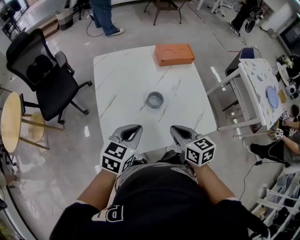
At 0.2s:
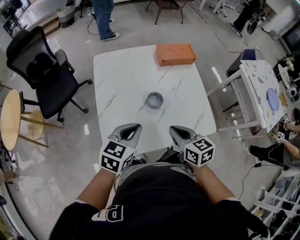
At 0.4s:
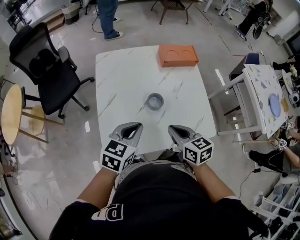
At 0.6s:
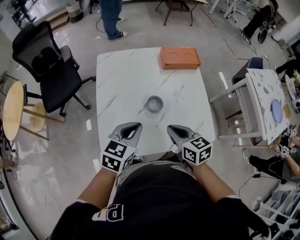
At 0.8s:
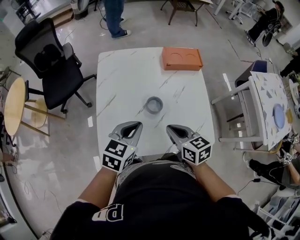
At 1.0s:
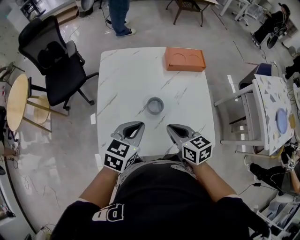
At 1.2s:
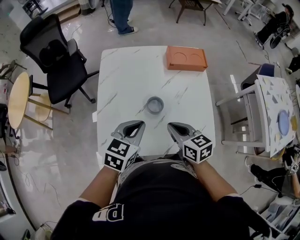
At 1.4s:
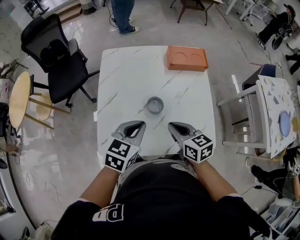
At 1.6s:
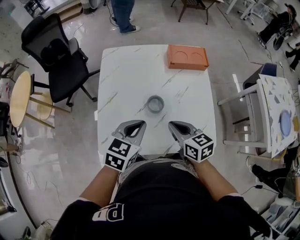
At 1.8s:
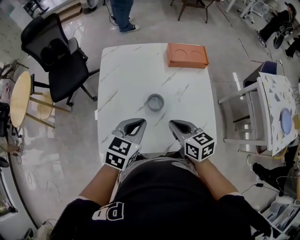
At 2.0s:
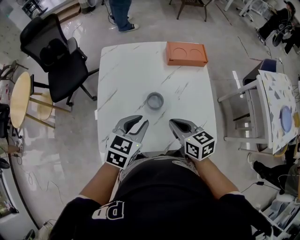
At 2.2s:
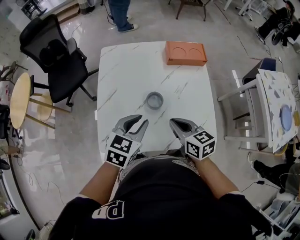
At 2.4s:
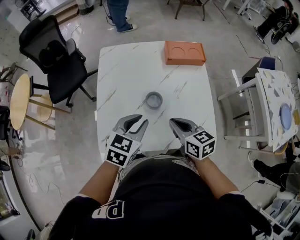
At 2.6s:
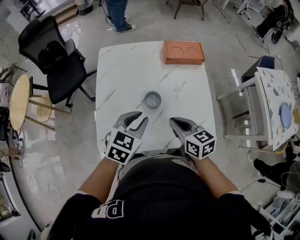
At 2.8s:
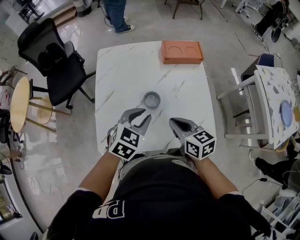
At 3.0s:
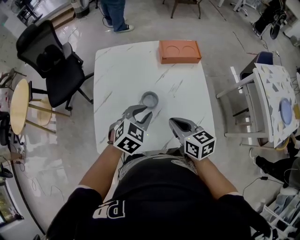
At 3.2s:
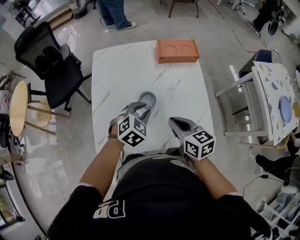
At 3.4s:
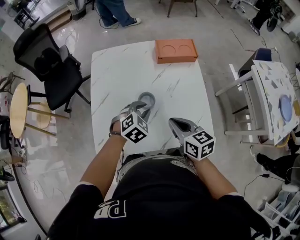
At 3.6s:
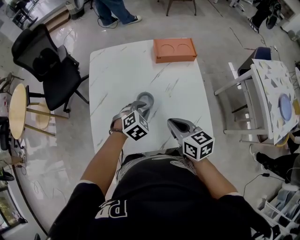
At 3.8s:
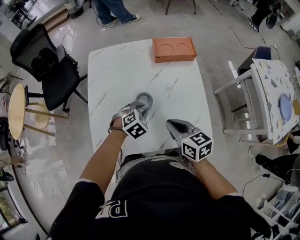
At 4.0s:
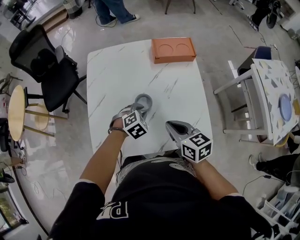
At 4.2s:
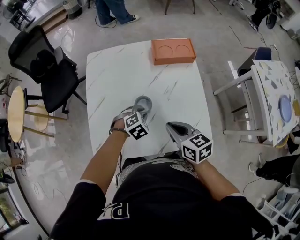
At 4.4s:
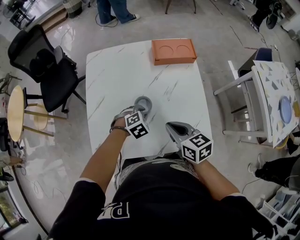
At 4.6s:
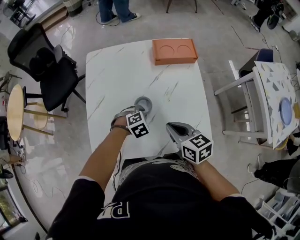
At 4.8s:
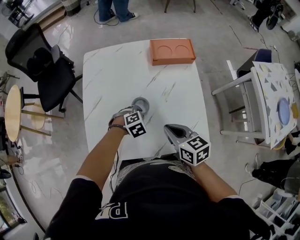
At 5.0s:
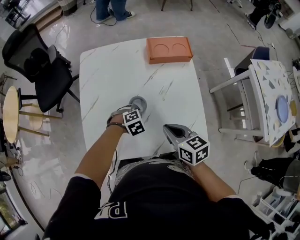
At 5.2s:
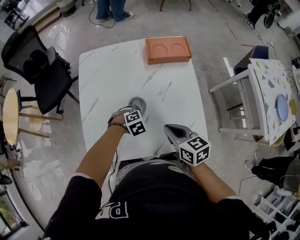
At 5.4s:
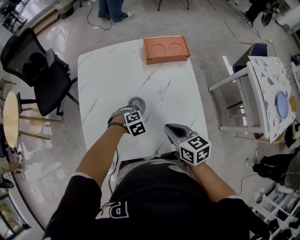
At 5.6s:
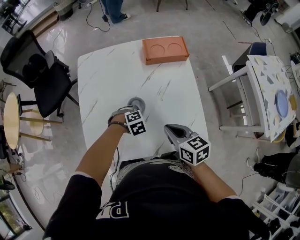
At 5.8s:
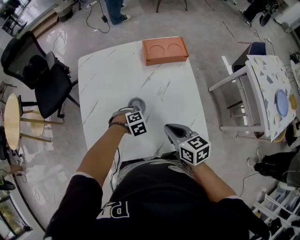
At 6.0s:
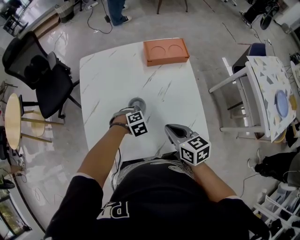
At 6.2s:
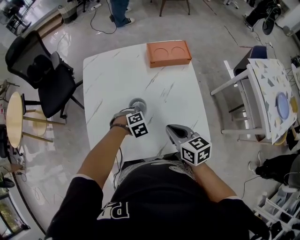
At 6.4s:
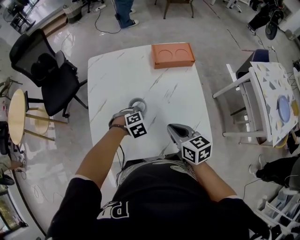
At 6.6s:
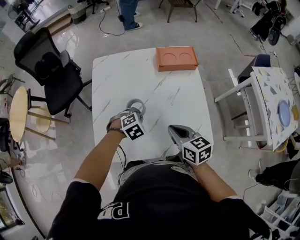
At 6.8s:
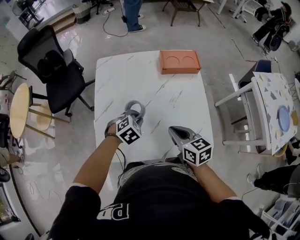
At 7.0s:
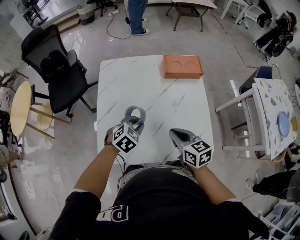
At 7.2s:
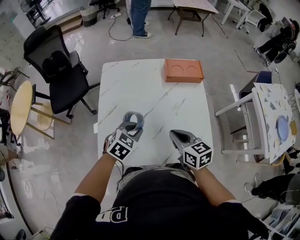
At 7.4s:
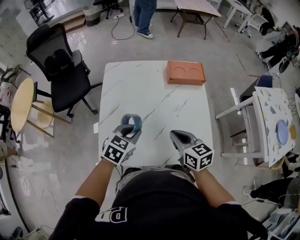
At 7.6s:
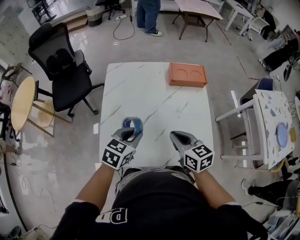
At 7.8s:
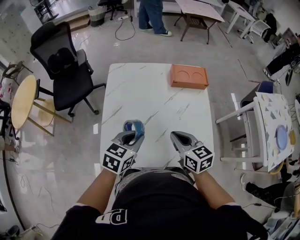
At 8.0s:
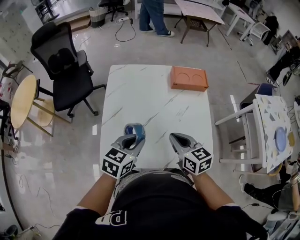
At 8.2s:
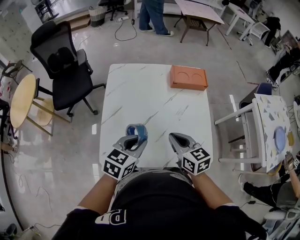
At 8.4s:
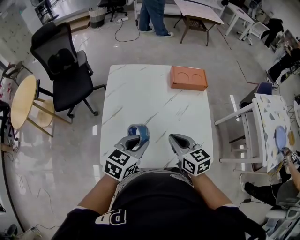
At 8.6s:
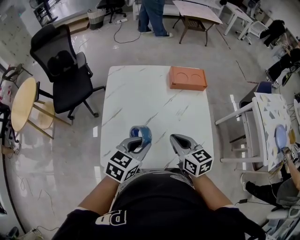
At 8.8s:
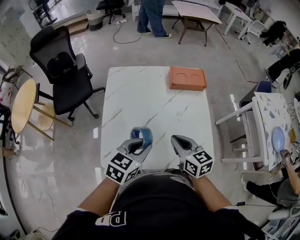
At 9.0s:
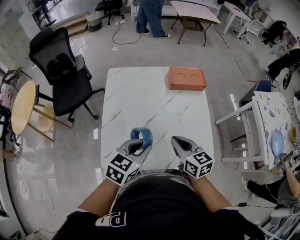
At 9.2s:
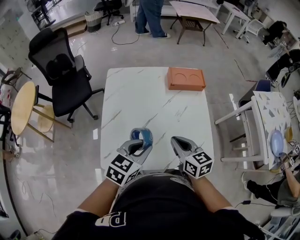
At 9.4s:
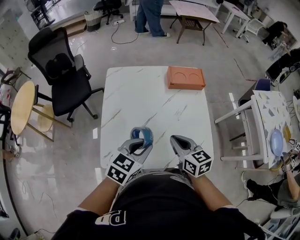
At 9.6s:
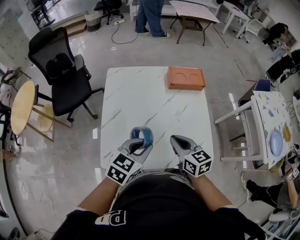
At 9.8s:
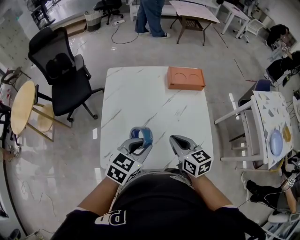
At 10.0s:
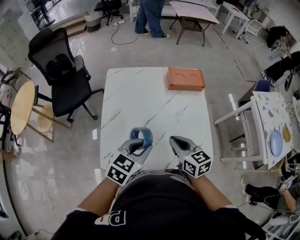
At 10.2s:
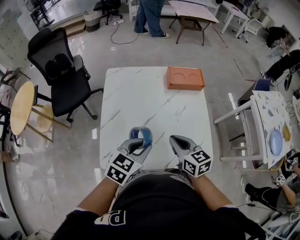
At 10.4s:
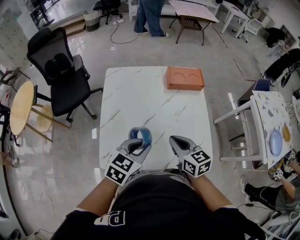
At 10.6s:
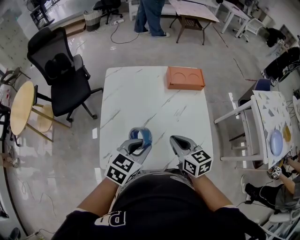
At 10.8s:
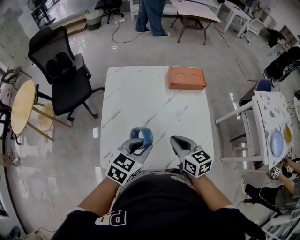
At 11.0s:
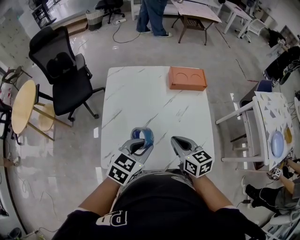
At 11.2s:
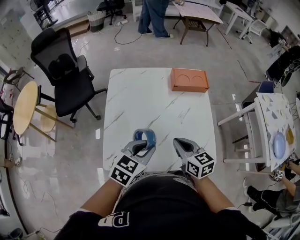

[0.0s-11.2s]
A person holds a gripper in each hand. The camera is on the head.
0.0s to 1.6s: The right gripper goes roughly 5 cm forward. Meanwhile the left gripper heads to the right, covering approximately 5 cm.
1.6s to 3.2s: The left gripper is displaced downward and to the right by roughly 10 cm, turns by some 30 degrees, and opens its fingers.
3.2s to 4.8s: The left gripper moves downward, some 15 cm, and swivels approximately 30 degrees.
4.8s to 6.4s: There are only small adjustments of the grippers.
6.4s to 8.0s: The right gripper heads to the left, covering about 5 cm, while the left gripper shifts roughly 20 cm upward, to the left and backward, and angles its fingers upward, by some 40 degrees.
8.0s to 9.6s: The grippers move only a little.
9.6s to 11.2s: Both grippers stay about where they are.

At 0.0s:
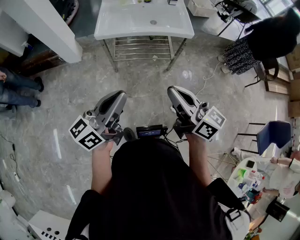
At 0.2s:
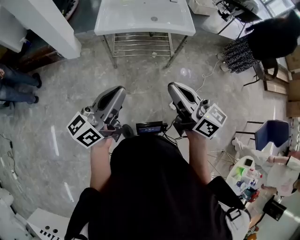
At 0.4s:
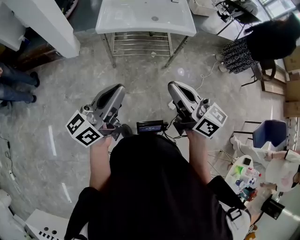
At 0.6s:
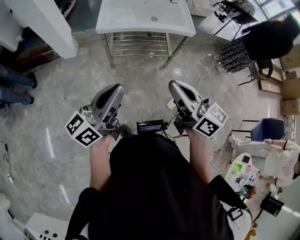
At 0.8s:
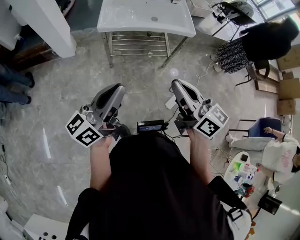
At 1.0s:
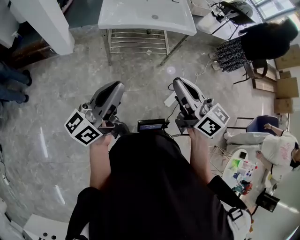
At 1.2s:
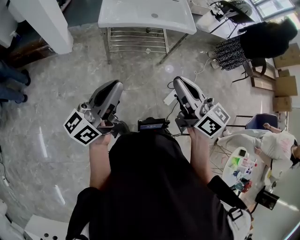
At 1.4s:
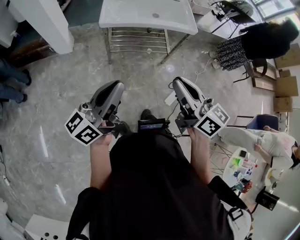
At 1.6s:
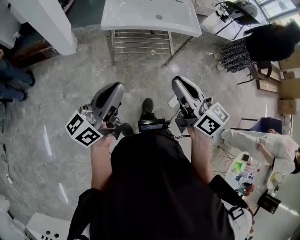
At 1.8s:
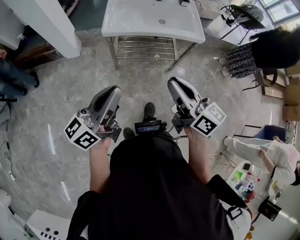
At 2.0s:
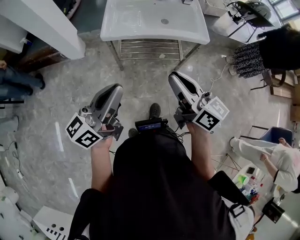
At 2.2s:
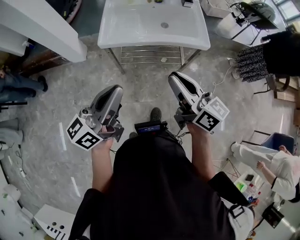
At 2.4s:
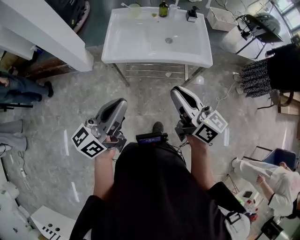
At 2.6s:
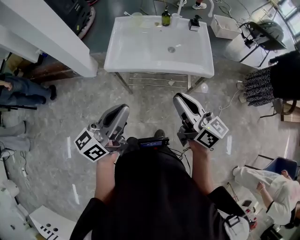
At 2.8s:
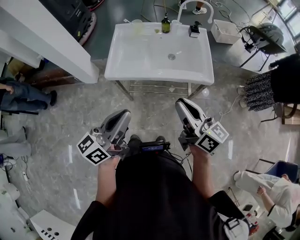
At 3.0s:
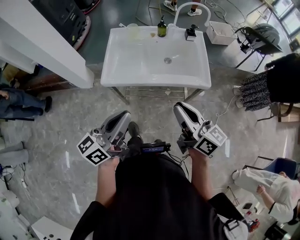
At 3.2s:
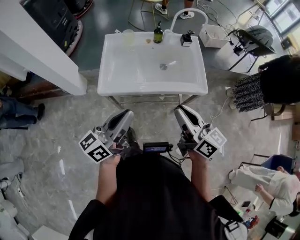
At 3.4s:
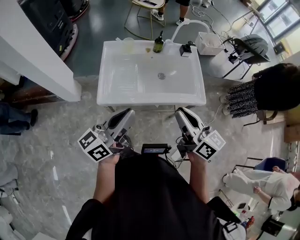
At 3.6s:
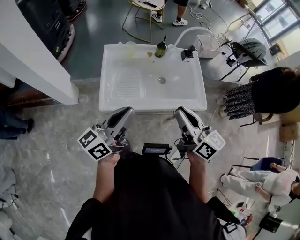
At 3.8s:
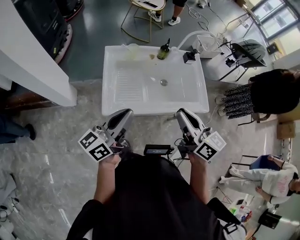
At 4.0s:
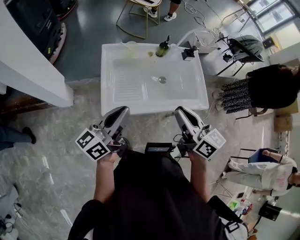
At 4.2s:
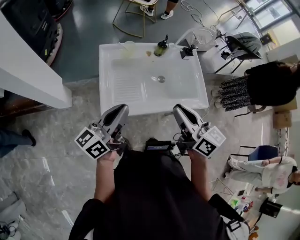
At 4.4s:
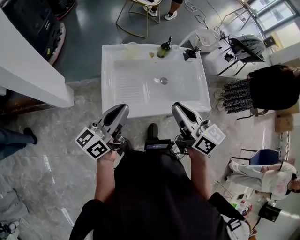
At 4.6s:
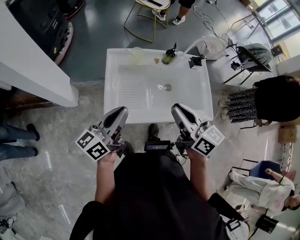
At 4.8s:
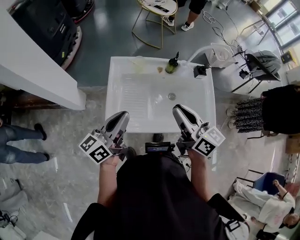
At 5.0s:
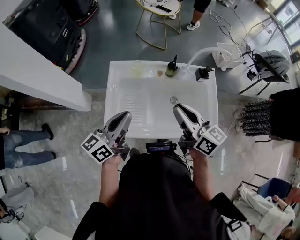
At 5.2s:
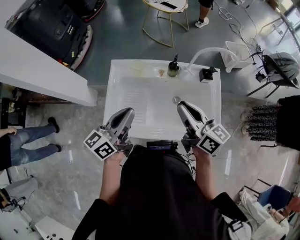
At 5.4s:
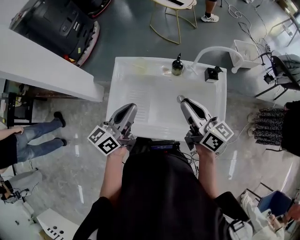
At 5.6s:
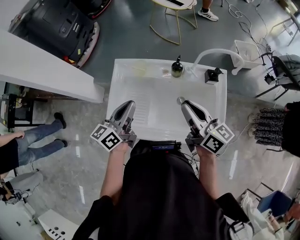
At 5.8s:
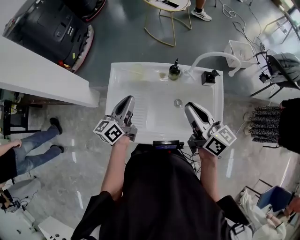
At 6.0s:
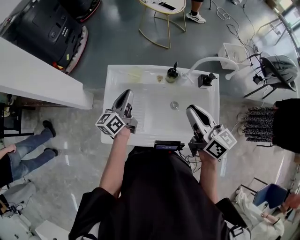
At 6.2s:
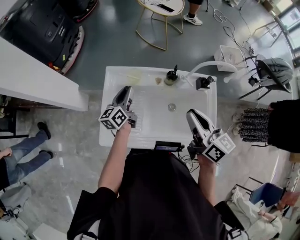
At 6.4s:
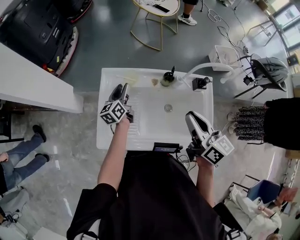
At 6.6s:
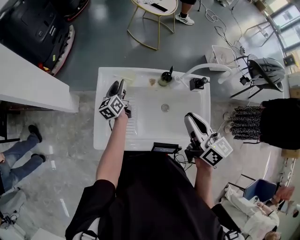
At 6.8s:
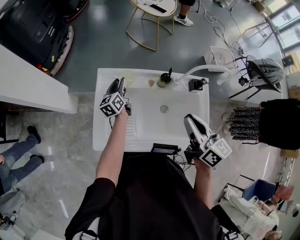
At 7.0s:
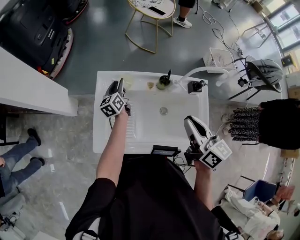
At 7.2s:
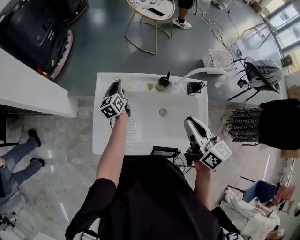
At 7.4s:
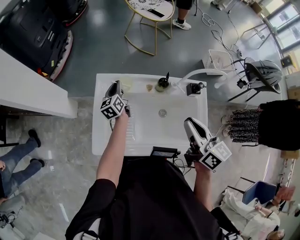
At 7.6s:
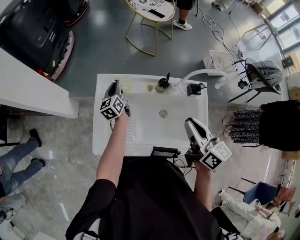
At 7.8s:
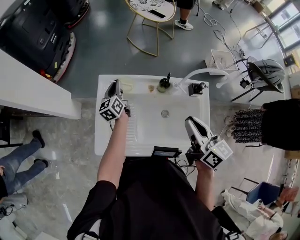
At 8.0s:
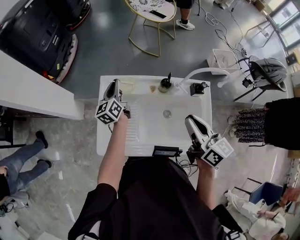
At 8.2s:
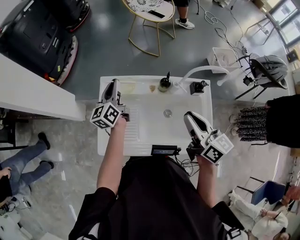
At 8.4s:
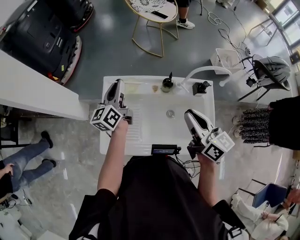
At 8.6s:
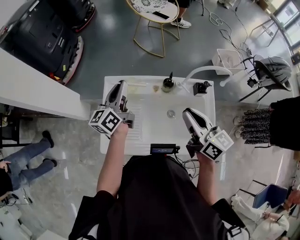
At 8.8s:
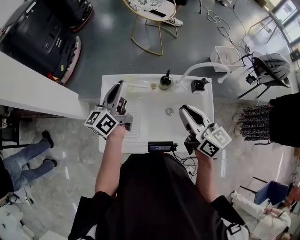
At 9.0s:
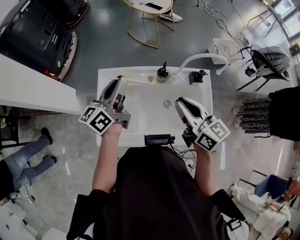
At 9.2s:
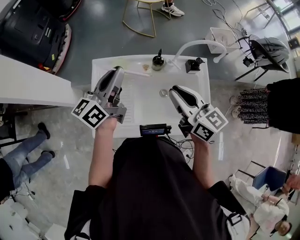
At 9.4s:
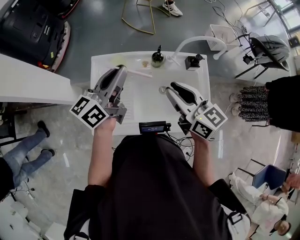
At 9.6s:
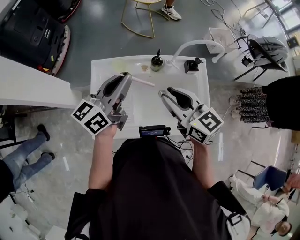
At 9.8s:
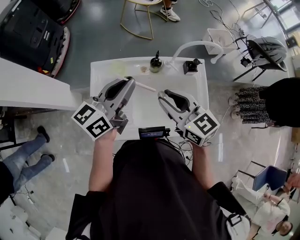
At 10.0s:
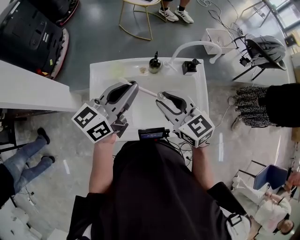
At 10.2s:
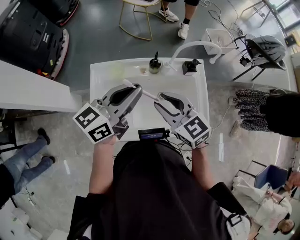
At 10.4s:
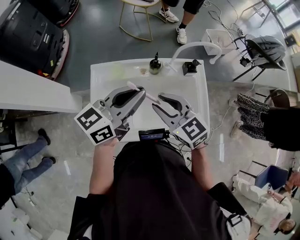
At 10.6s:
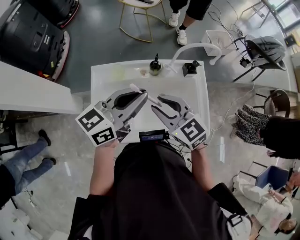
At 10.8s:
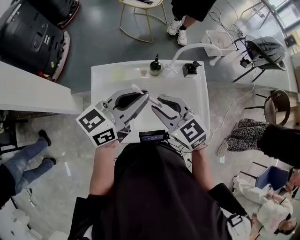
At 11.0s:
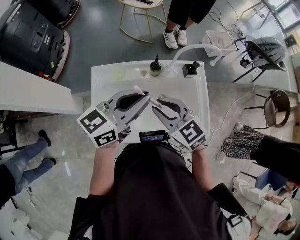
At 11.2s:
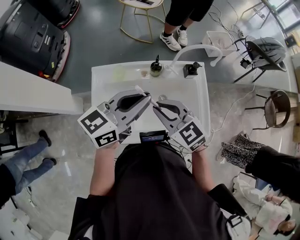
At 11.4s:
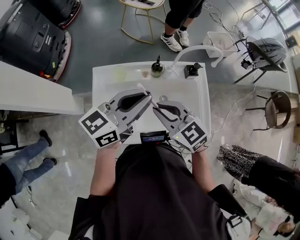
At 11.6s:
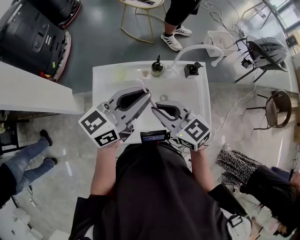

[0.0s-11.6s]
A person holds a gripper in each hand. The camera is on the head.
0.0s to 1.4s: Both grippers move to the left, some 10 cm.
1.4s to 2.8s: The grippers both shift forward and to the right by some 30 cm.
2.8s to 4.4s: Both grippers travel together forward and to the left, approximately 30 cm.
4.4s to 5.8s: Both grippers travel together forward and to the right, roughly 20 cm. The left gripper rotates approximately 30 degrees.
5.8s to 7.2s: The left gripper is displaced forward and downward by some 20 cm, and turns by some 20 degrees.
7.2s to 8.8s: The left gripper goes some 20 cm upward and backward, and changes its angle by some 30 degrees.
8.8s to 10.2s: The left gripper goes roughly 15 cm to the right and backward, and changes its angle by roughly 30 degrees, while the right gripper travels to the left by some 5 cm, and turns by approximately 30 degrees.
10.2s to 11.6s: The grippers make only small movements.

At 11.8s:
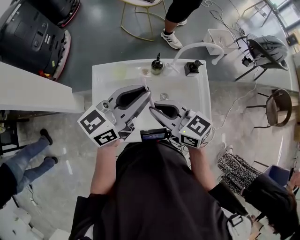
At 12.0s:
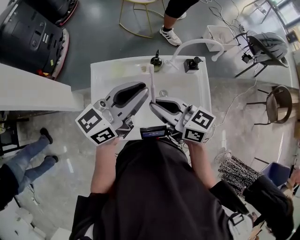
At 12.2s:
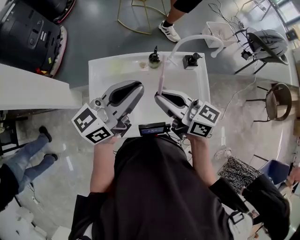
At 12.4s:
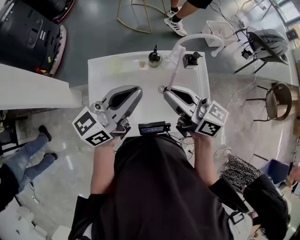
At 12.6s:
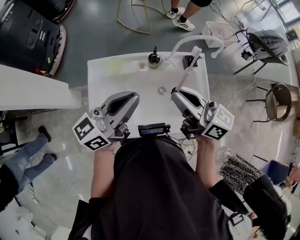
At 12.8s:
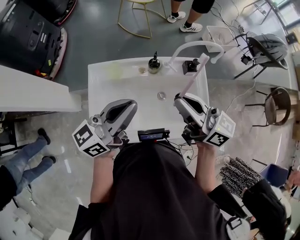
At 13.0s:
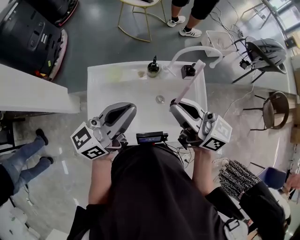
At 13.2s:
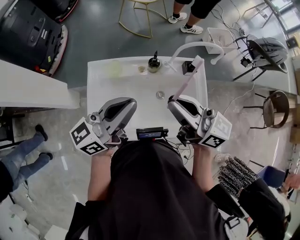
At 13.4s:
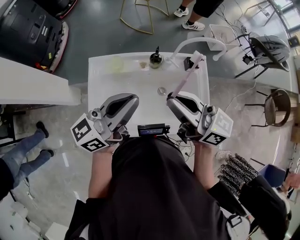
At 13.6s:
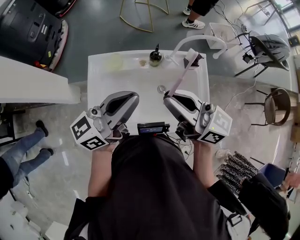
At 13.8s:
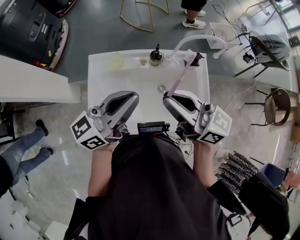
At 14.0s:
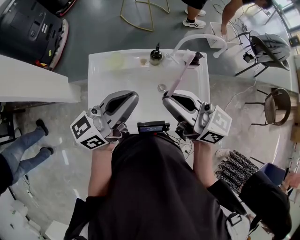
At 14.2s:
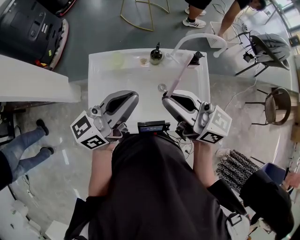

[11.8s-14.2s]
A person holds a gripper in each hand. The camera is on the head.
11.8s to 13.0s: The right gripper heads to the right and upward, covering roughly 10 cm, and swivels some 20 degrees.
13.0s to 14.2s: There are only small adjustments of the grippers.
